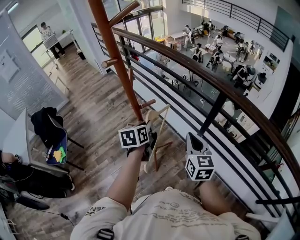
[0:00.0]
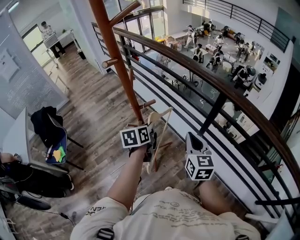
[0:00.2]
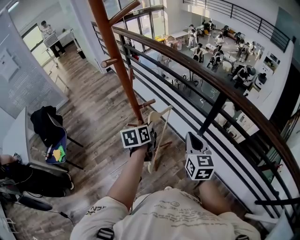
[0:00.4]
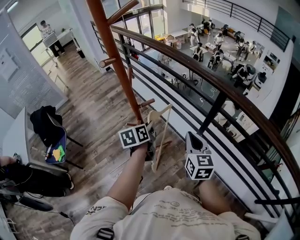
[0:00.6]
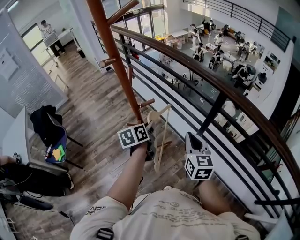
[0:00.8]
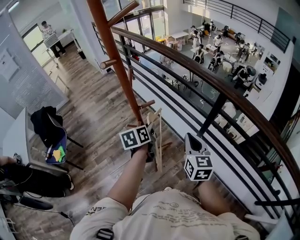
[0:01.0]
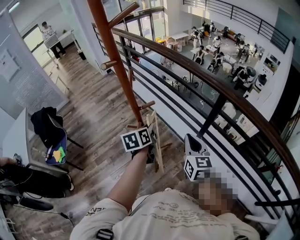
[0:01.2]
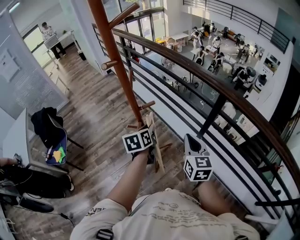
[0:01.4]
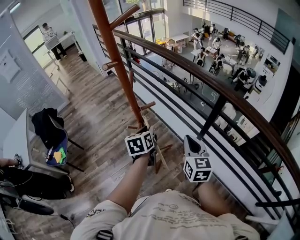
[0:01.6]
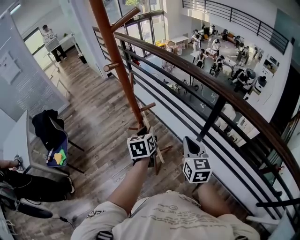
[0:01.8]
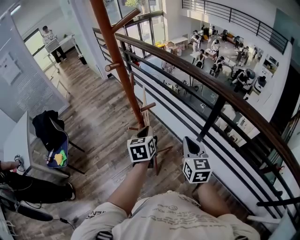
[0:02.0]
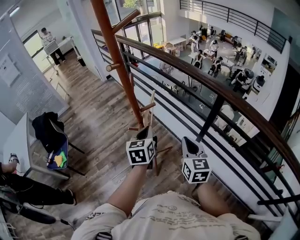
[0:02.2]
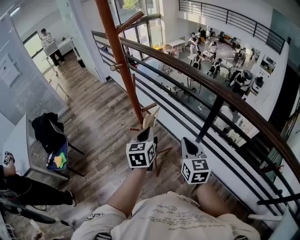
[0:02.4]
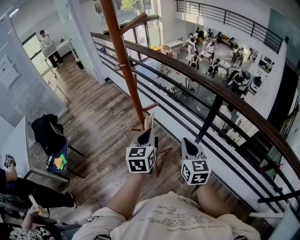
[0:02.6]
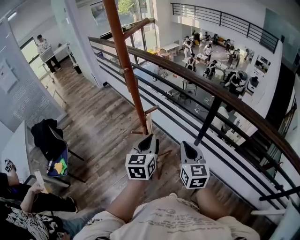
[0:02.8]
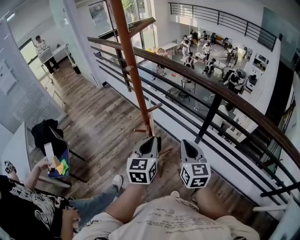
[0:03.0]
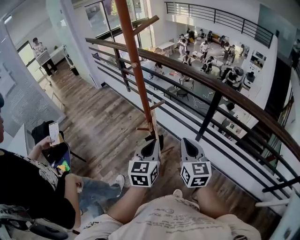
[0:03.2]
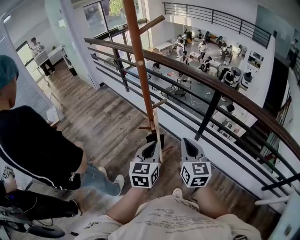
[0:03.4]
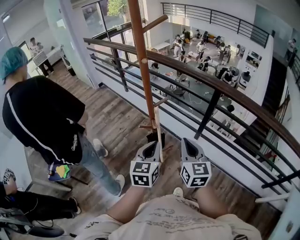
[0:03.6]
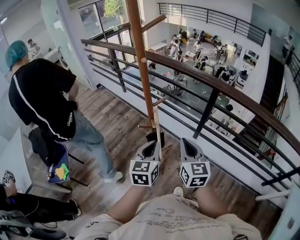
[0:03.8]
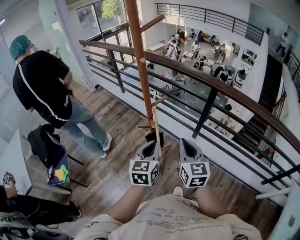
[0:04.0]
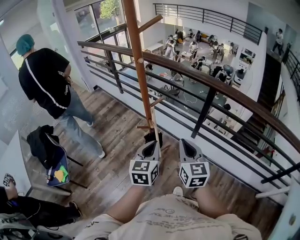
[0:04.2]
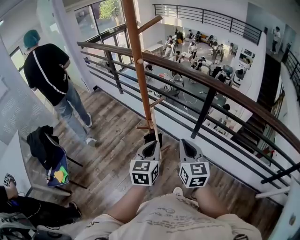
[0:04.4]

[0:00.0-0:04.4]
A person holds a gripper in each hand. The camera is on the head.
0:00.0 to 0:01.4: The grippers move only a little.
0:01.4 to 0:03.0: The left gripper shifts roughly 15 cm backward and upward, and swivels approximately 30 degrees. Meanwhile the right gripper heads to the left and backward, covering about 10 cm.
0:03.0 to 0:04.4: The two grippers go roughly 5 cm backward.

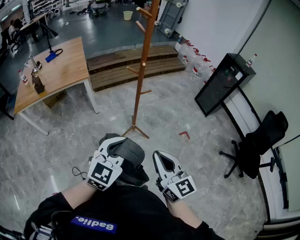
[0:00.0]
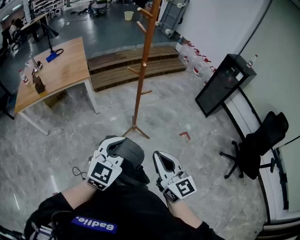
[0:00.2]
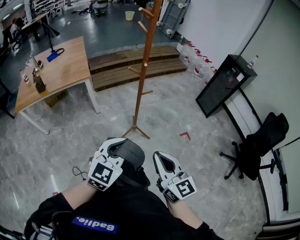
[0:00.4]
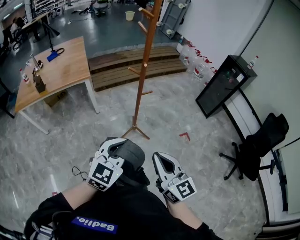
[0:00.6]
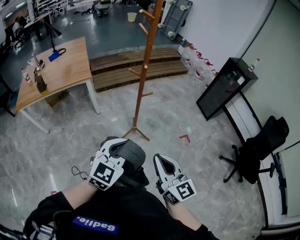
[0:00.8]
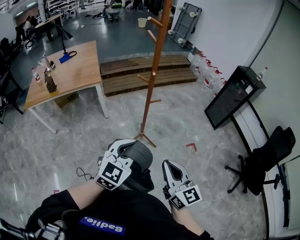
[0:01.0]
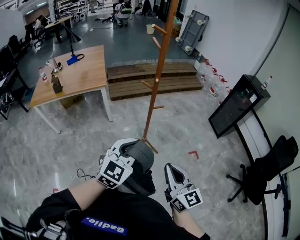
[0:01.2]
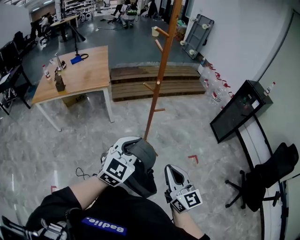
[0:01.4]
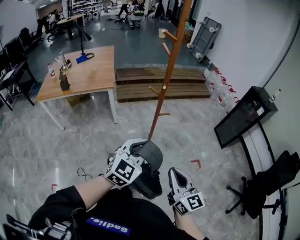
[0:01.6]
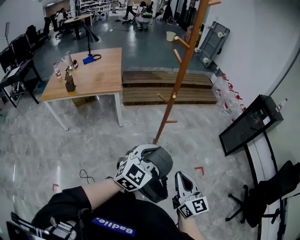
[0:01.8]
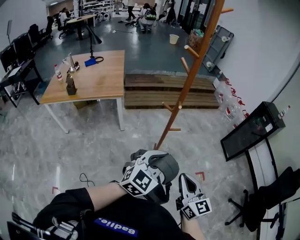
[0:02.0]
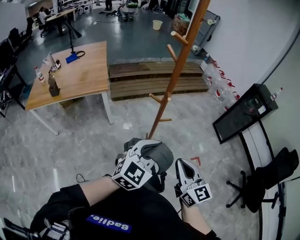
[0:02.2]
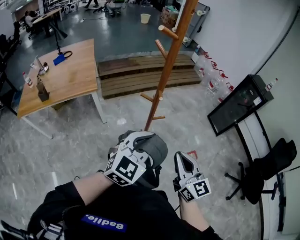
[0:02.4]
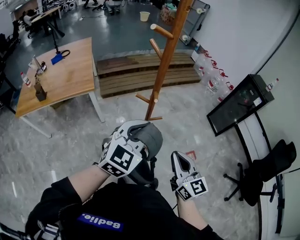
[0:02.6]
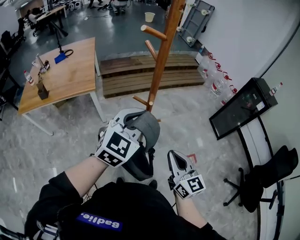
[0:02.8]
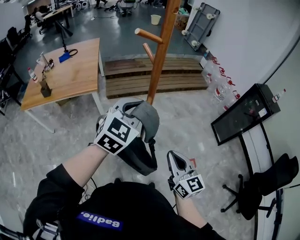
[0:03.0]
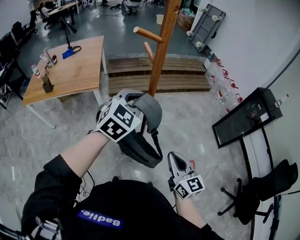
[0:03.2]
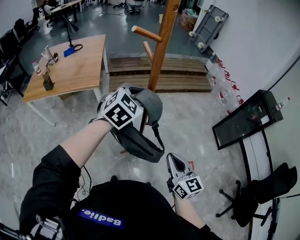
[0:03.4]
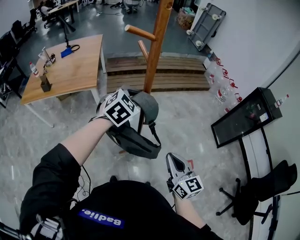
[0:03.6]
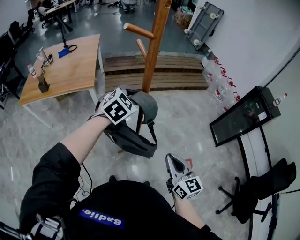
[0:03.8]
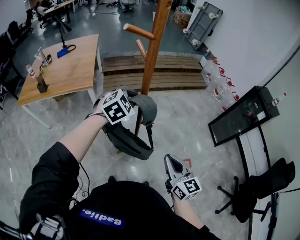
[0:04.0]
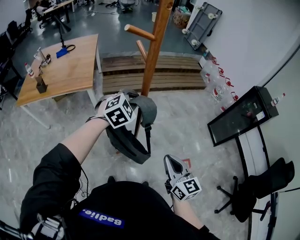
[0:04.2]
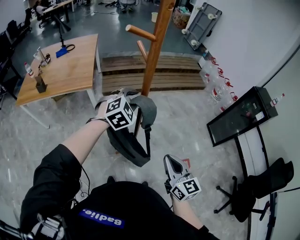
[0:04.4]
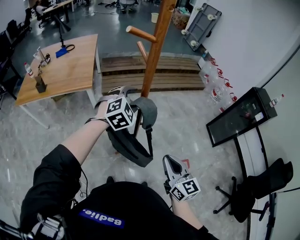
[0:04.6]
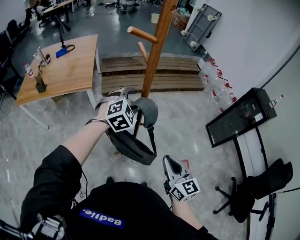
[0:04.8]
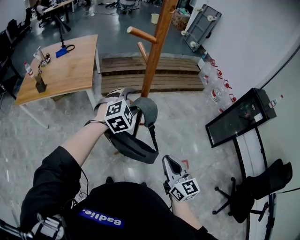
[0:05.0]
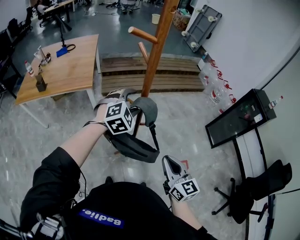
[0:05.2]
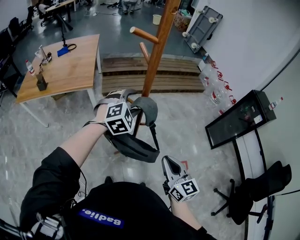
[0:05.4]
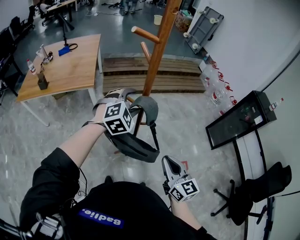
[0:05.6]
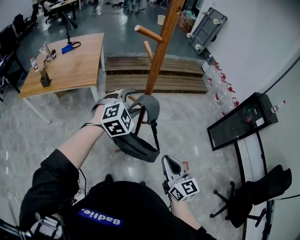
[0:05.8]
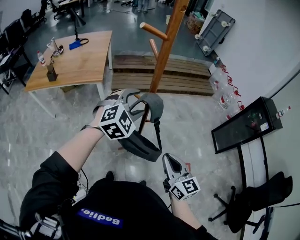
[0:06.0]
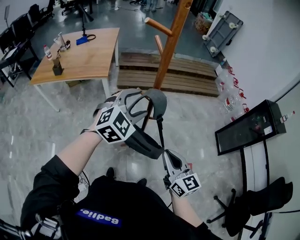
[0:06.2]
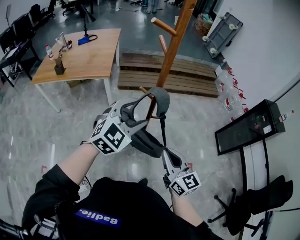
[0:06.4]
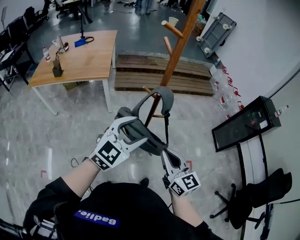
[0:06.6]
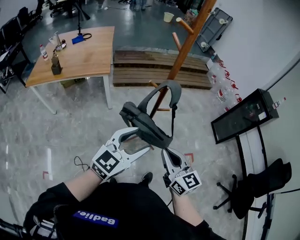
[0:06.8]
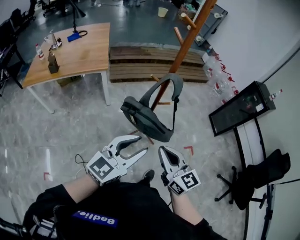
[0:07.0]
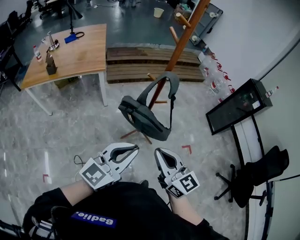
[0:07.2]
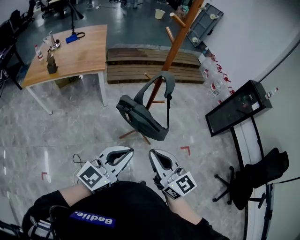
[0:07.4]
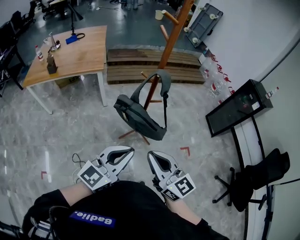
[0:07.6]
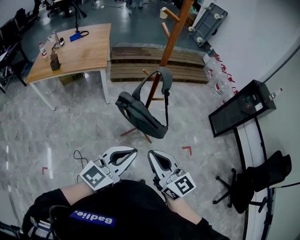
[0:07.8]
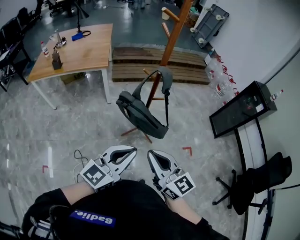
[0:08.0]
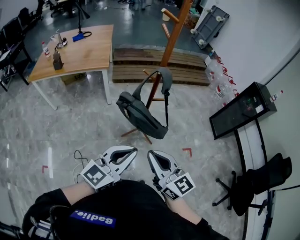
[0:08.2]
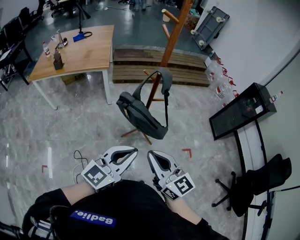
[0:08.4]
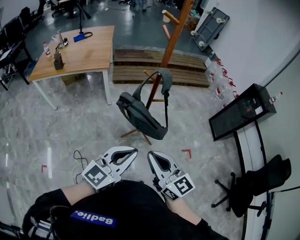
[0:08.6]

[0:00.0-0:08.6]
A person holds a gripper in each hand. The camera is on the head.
0:00.0 to 0:01.4: The left gripper moves forward, roughly 5 cm. Meanwhile the right gripper is displaced to the right by some 5 cm.
0:01.4 to 0:02.8: The grippers both shift forward by about 25 cm.
0:02.8 to 0:04.4: The left gripper heads forward and downward, covering about 15 cm, and turns by roughly 30 degrees, while the right gripper shifts approximately 5 cm to the right.
0:04.4 to 0:05.8: The left gripper opens.
0:05.8 to 0:07.2: The left gripper is displaced backward by about 35 cm, tips its fingers upward by some 40 degrees, and closes up. Meanwhile the right gripper shifts some 20 cm to the left and backward.
0:07.2 to 0:08.6: The left gripper shifts approximately 5 cm to the right; the right gripper changes place by approximately 5 cm.

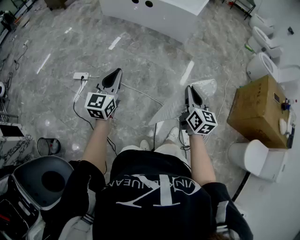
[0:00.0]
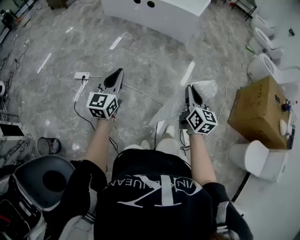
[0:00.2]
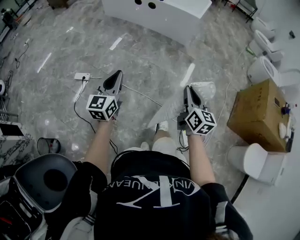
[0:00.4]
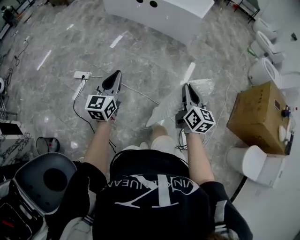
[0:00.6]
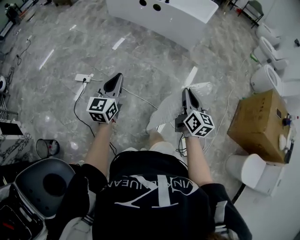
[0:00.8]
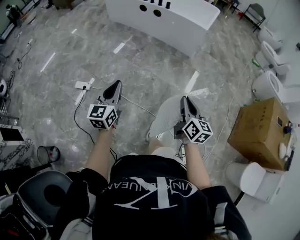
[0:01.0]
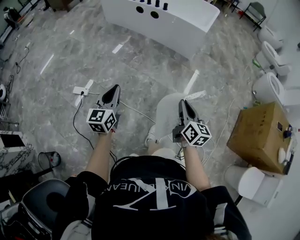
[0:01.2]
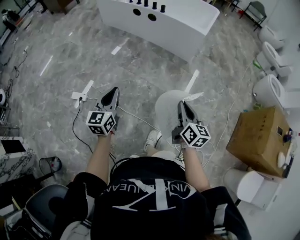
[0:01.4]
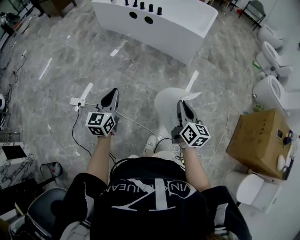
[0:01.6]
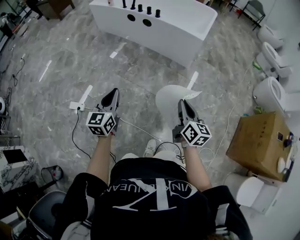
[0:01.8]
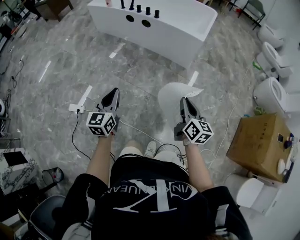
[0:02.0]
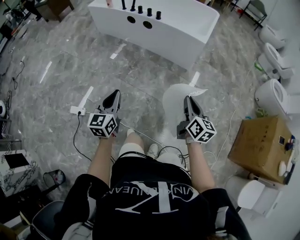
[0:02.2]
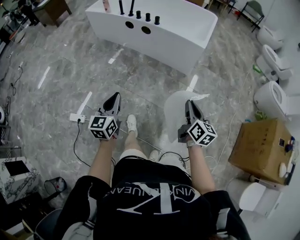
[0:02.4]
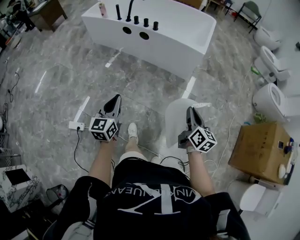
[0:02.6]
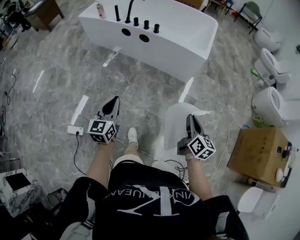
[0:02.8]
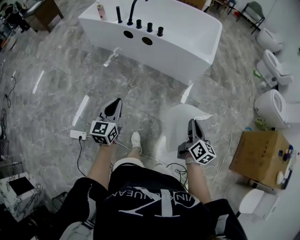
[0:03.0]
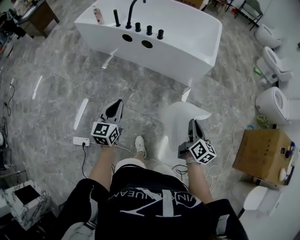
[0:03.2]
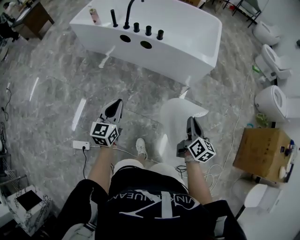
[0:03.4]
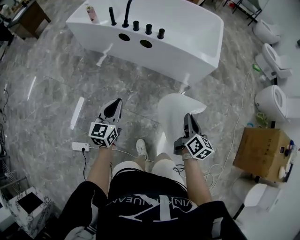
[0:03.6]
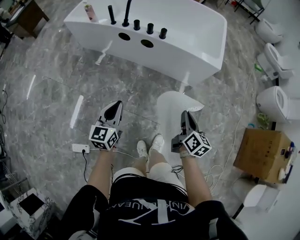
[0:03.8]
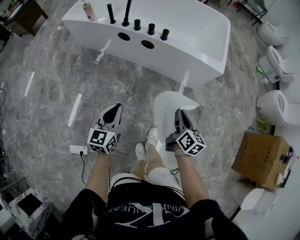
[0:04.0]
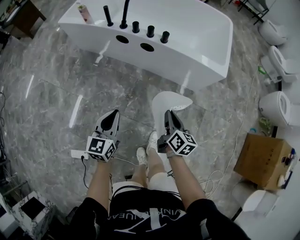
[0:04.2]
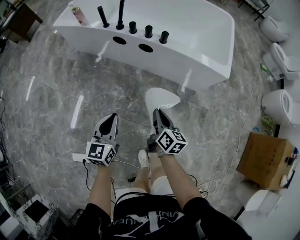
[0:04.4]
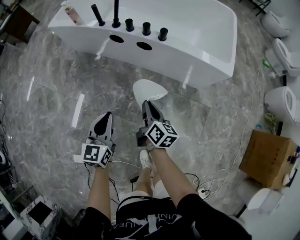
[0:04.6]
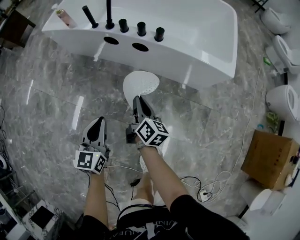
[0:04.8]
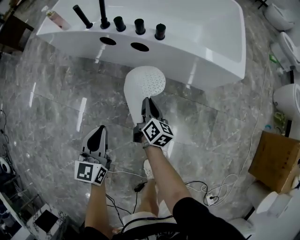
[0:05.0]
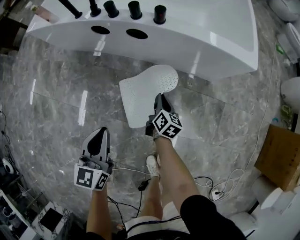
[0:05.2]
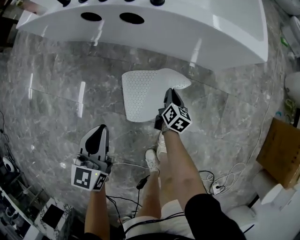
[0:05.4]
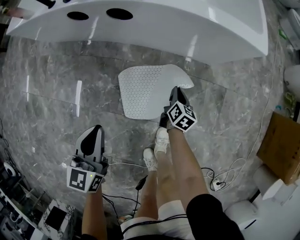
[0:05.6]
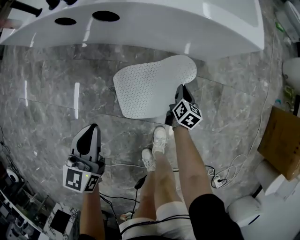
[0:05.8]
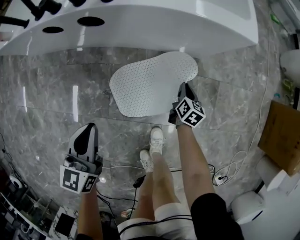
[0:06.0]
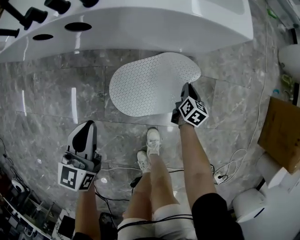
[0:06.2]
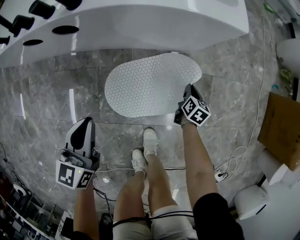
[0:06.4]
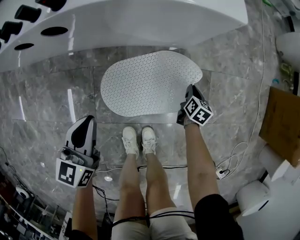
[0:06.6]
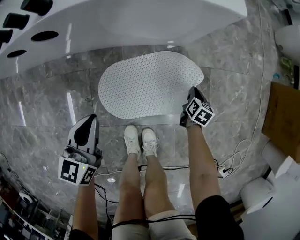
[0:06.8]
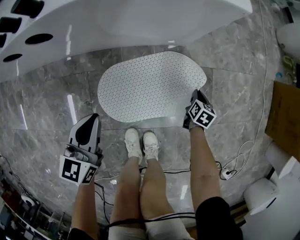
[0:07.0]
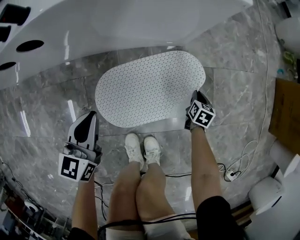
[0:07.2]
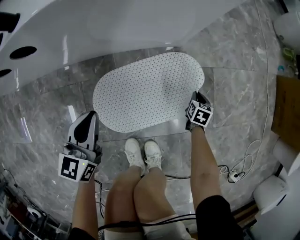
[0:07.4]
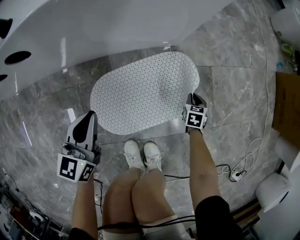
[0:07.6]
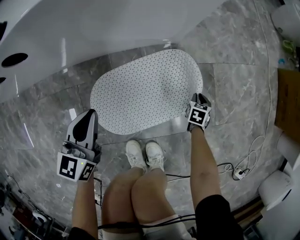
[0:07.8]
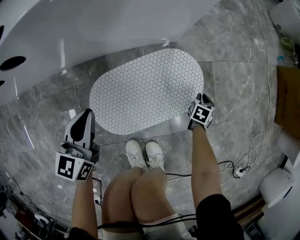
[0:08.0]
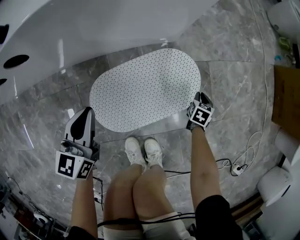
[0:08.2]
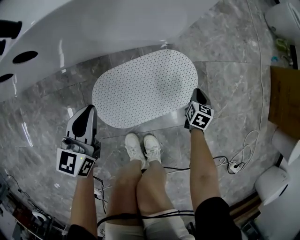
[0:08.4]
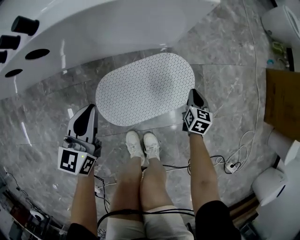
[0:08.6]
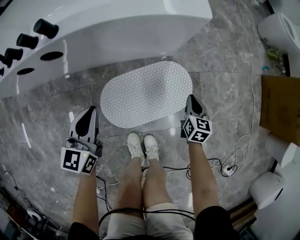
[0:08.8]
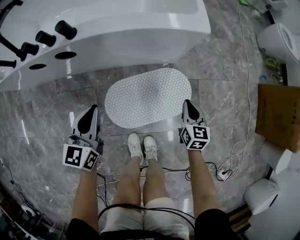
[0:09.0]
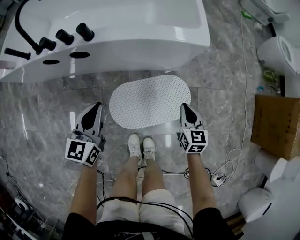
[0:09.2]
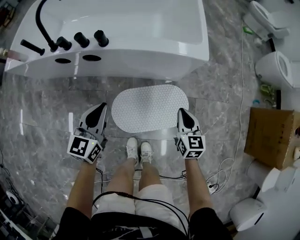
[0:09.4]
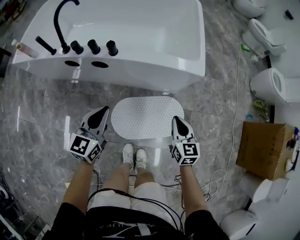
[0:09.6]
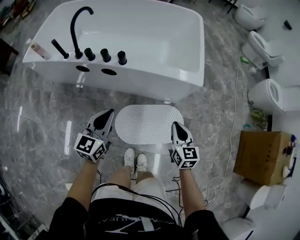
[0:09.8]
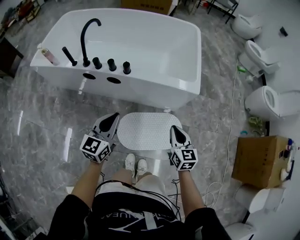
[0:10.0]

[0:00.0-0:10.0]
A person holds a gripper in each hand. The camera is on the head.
0:00.0 to 0:01.4: The grippers both shift forward by roughly 25 cm.
0:01.4 to 0:02.8: Both grippers travel together forward, approximately 30 cm.
0:02.8 to 0:04.2: The right gripper is displaced forward, to the left and downward by approximately 40 cm; the left gripper shifts about 30 cm forward and to the left.
0:04.2 to 0:05.8: The right gripper goes some 40 cm downward, and turns by some 30 degrees; the left gripper is displaced downward and forward by about 25 cm.
0:05.8 to 0:07.2: The right gripper heads to the right and downward, covering roughly 30 cm, and rotates some 20 degrees. The left gripper moves downward, forward and to the right, some 25 cm.
0:07.2 to 0:08.6: The right gripper is displaced upward by roughly 10 cm. The left gripper shifts about 5 cm upward.
0:08.6 to 0:10.0: The left gripper is displaced upward by about 35 cm, while the right gripper moves upward and to the left, roughly 50 cm, and turns by about 40 degrees.
